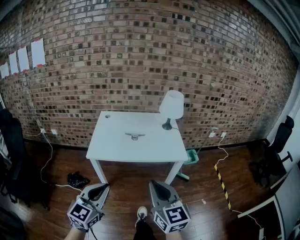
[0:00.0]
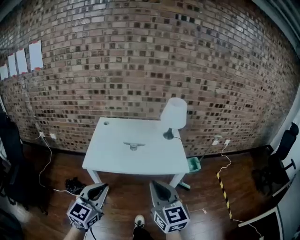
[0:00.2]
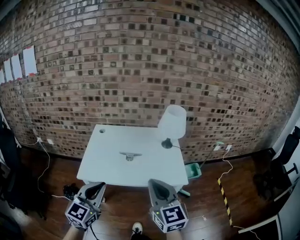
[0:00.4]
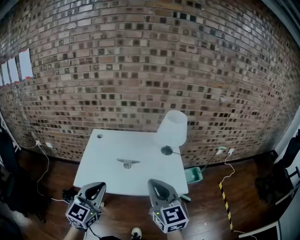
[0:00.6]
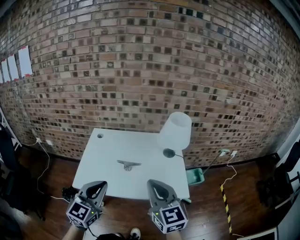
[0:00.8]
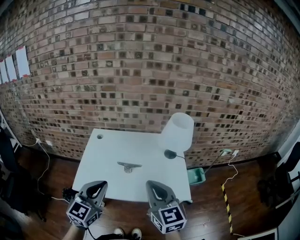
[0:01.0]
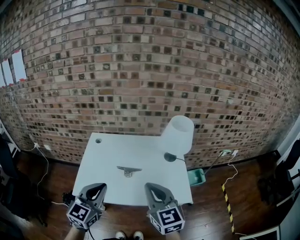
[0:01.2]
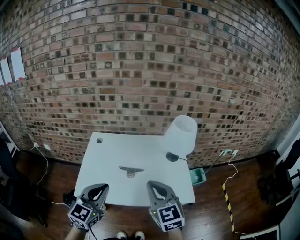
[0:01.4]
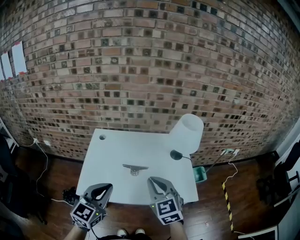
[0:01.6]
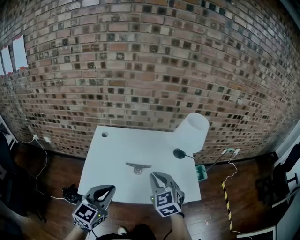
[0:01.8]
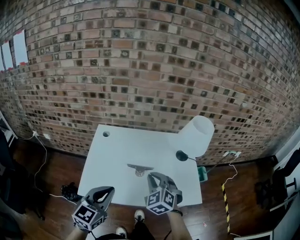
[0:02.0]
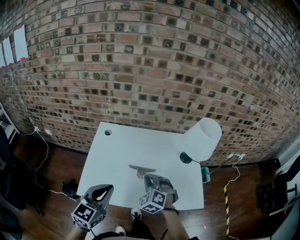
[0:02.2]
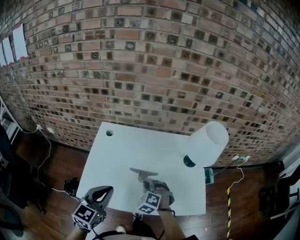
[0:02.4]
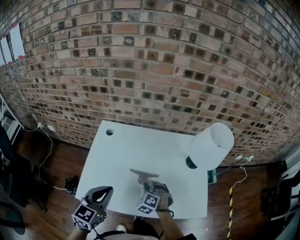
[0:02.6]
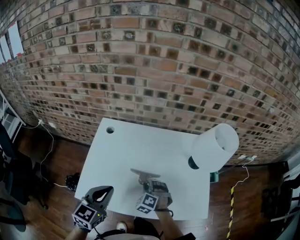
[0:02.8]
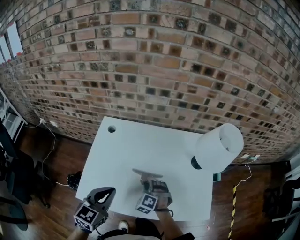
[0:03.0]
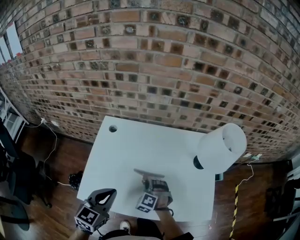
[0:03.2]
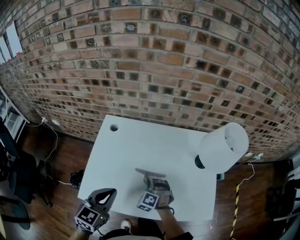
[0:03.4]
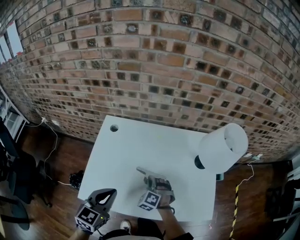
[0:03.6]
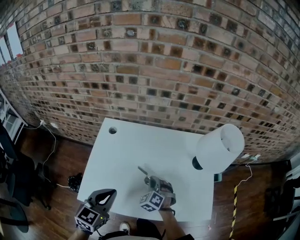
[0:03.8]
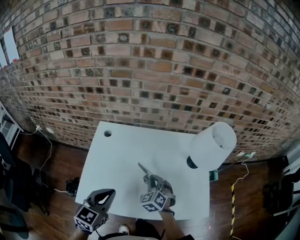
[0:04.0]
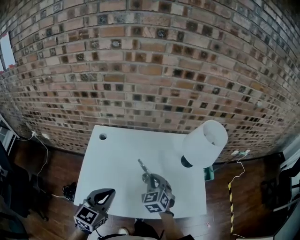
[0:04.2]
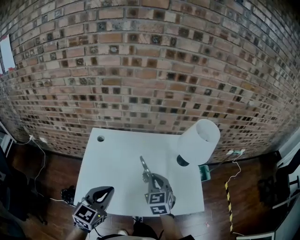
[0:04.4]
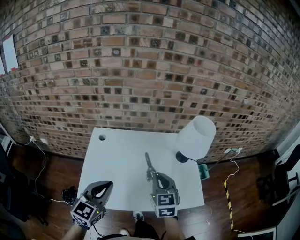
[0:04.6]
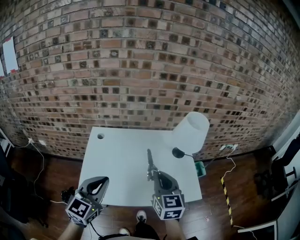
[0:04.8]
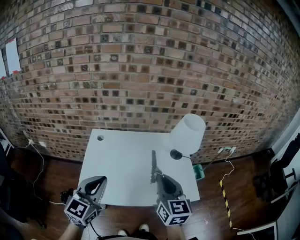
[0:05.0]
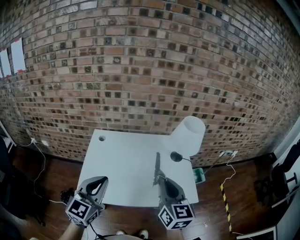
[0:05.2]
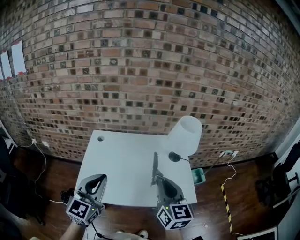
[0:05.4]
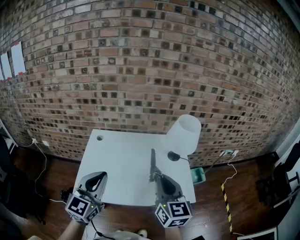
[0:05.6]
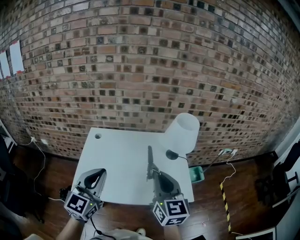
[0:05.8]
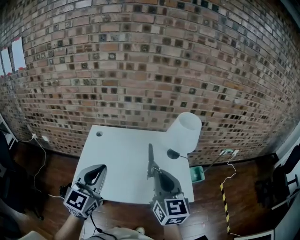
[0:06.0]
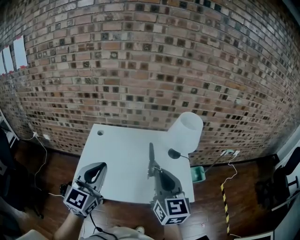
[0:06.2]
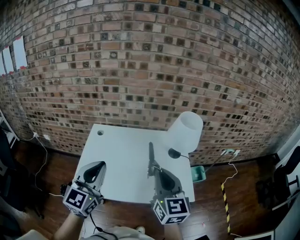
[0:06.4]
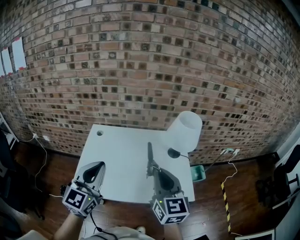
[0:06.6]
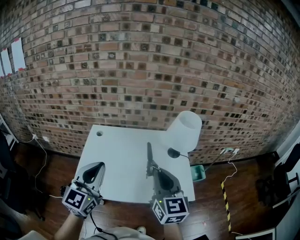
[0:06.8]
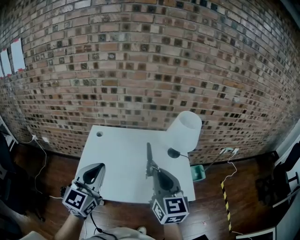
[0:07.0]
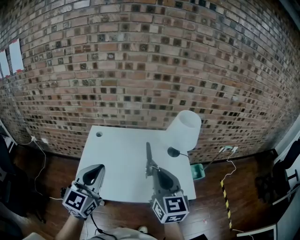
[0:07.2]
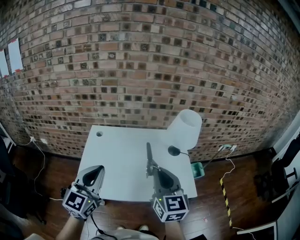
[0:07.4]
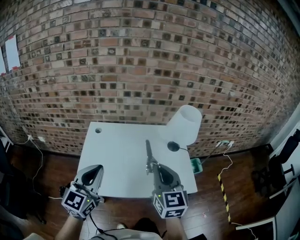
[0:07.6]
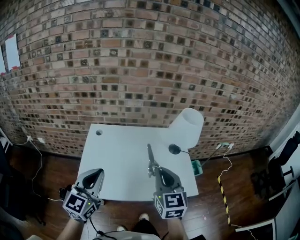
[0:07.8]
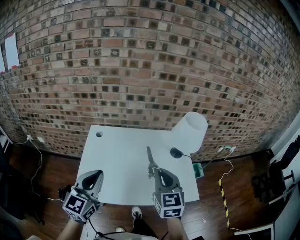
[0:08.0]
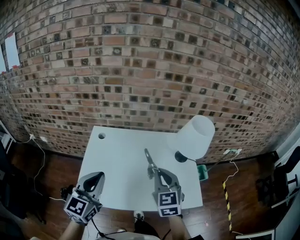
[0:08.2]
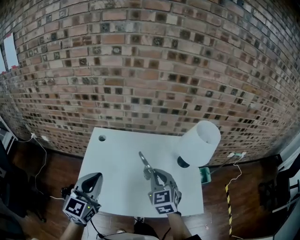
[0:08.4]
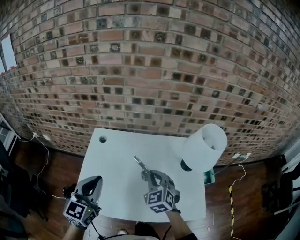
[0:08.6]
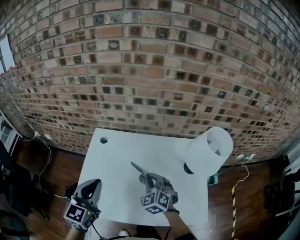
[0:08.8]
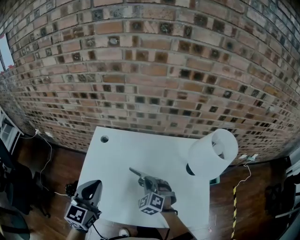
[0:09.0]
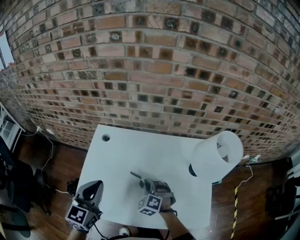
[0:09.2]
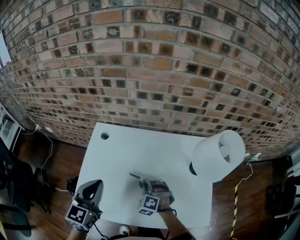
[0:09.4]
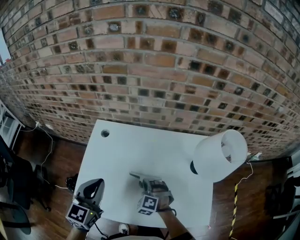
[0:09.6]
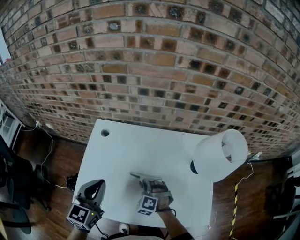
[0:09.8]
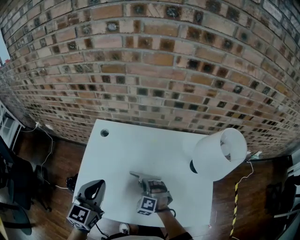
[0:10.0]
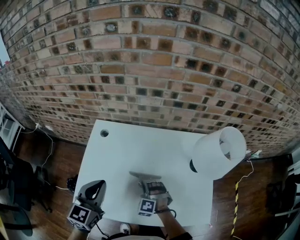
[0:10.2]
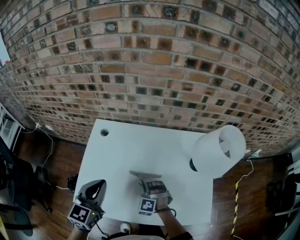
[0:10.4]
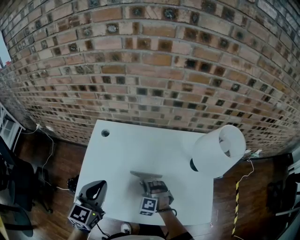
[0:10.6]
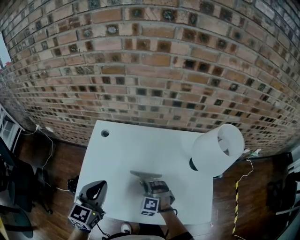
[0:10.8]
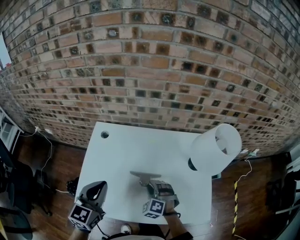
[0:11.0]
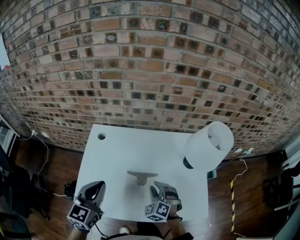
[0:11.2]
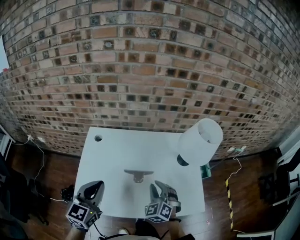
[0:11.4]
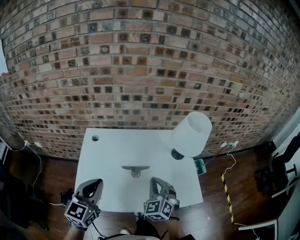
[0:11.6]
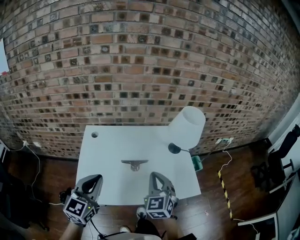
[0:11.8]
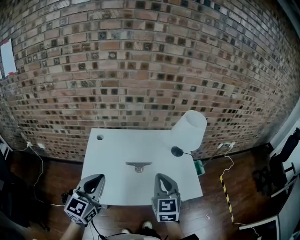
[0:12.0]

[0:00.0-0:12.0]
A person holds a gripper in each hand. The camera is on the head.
0:00.0 to 0:01.6: The grippers both shift forward by some 35 cm. The right gripper turns by roughly 20 degrees.
0:01.6 to 0:03.0: The right gripper shifts approximately 35 cm downward and forward, points its fingers approximately 30 degrees further downward, and opens. Meanwhile the left gripper is displaced forward and downward by approximately 15 cm.
0:03.0 to 0:04.4: The left gripper changes place by approximately 5 cm. The right gripper is displaced upward by roughly 20 cm, rotates around the line of its fingers by roughly 50 degrees, clockwise from behind, and closes its fingers.
0:04.4 to 0:06.0: The right gripper moves upward, backward and to the right, some 25 cm, and turns by about 30 degrees. The left gripper moves upward and backward, approximately 15 cm, and rotates roughly 20 degrees.
0:06.0 to 0:07.6: The left gripper ends up roughly 5 cm from where it was.
0:07.6 to 0:09.0: The left gripper goes roughly 15 cm forward and downward. Meanwhile the right gripper is displaced downward and forward by approximately 35 cm, and points its fingers approximately 30 degrees further downward.
0:09.0 to 0:10.4: The right gripper travels downward by roughly 10 cm, and rotates approximately 30 degrees.
0:10.4 to 0:12.0: The left gripper is displaced backward and upward by roughly 15 cm, and swivels approximately 20 degrees. The right gripper moves upward and backward, about 35 cm, and rotates around the line of its fingers by about 70 degrees, clockwise from behind.

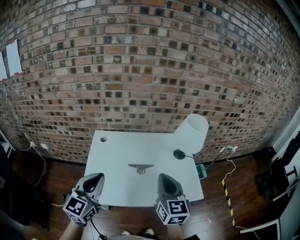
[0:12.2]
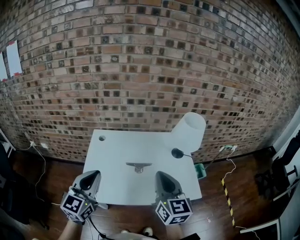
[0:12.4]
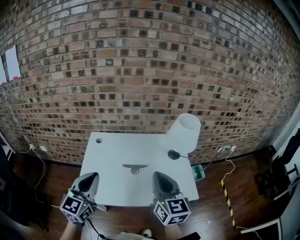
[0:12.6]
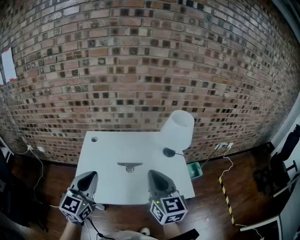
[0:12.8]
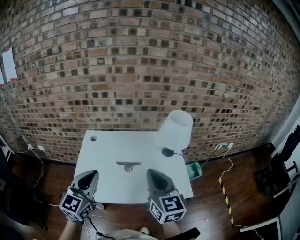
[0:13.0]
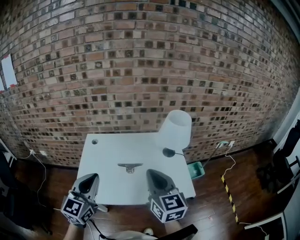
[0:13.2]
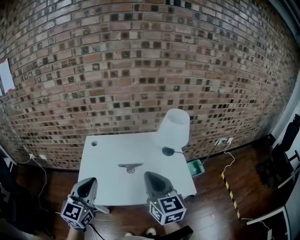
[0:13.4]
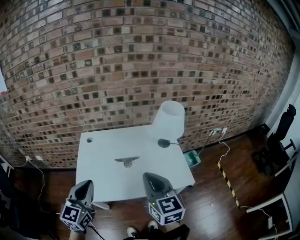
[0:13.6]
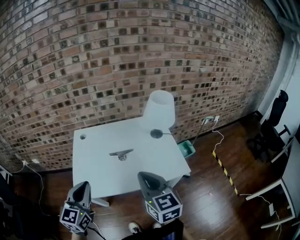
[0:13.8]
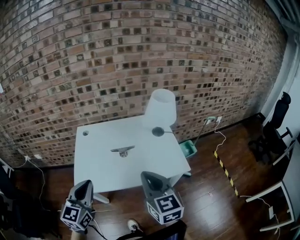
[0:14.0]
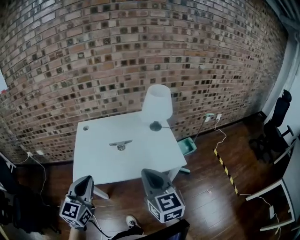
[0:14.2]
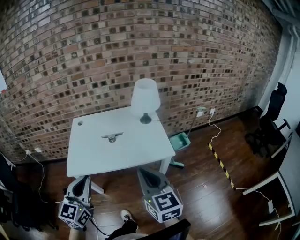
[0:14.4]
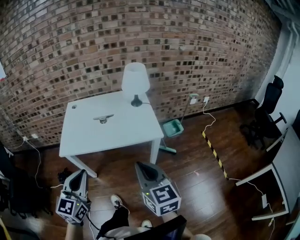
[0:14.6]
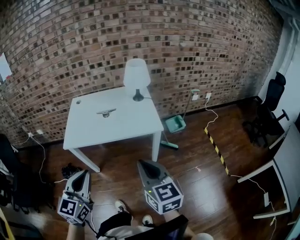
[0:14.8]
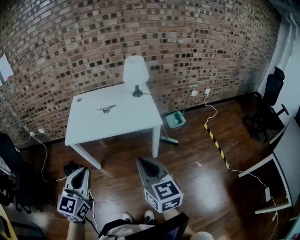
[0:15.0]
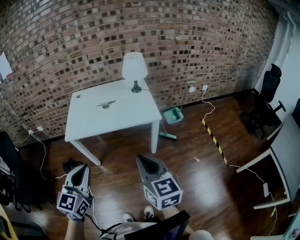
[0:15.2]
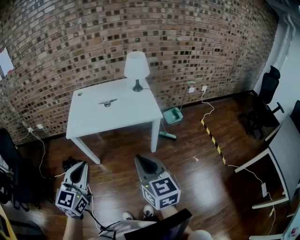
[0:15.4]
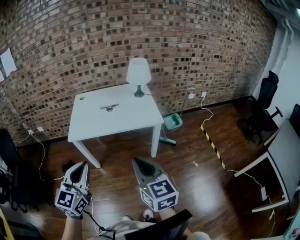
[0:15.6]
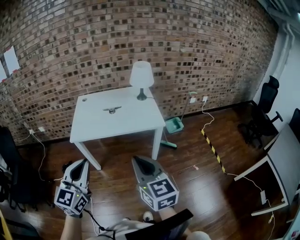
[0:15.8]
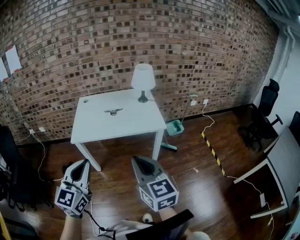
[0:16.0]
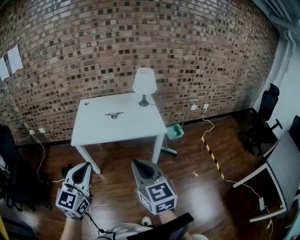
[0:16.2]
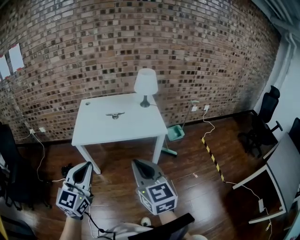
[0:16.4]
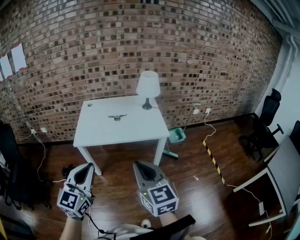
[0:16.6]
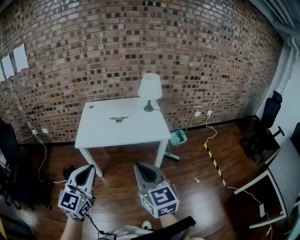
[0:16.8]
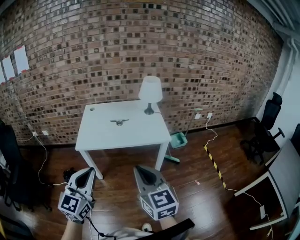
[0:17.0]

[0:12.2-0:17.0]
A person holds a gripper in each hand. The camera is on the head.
0:12.2 to 0:13.8: The two grippers go approximately 10 cm backward.
0:13.8 to 0:15.4: Both grippers travel together backward, approximately 35 cm.
0:15.4 to 0:17.0: The right gripper is displaced to the left and upward by roughly 10 cm, while the left gripper changes place by some 5 cm.

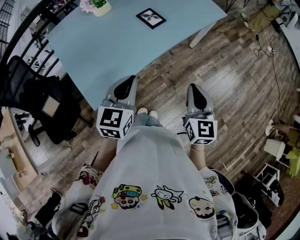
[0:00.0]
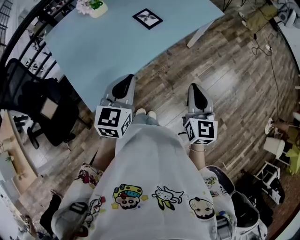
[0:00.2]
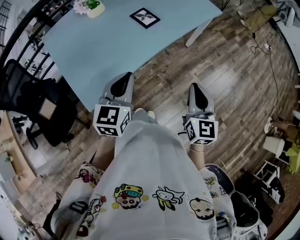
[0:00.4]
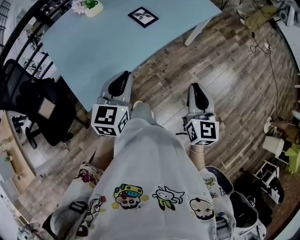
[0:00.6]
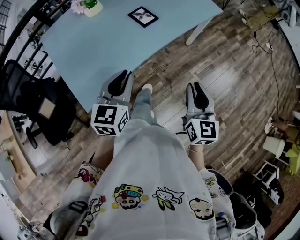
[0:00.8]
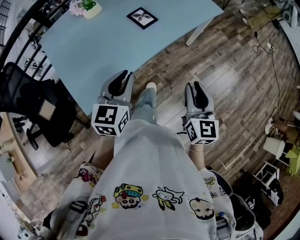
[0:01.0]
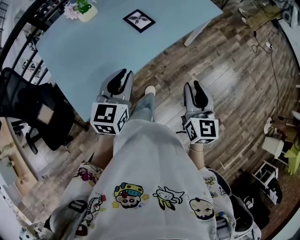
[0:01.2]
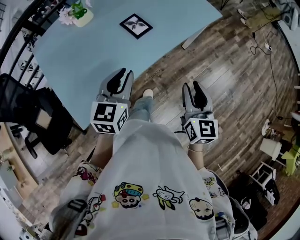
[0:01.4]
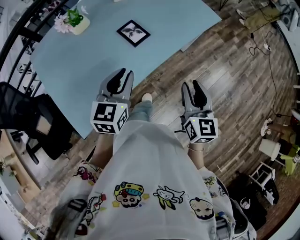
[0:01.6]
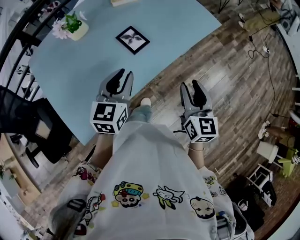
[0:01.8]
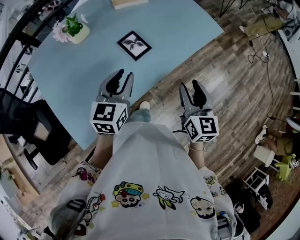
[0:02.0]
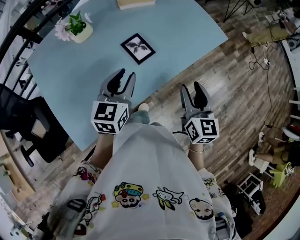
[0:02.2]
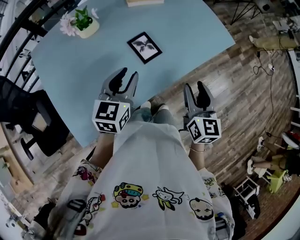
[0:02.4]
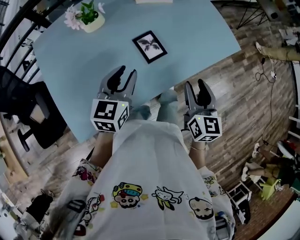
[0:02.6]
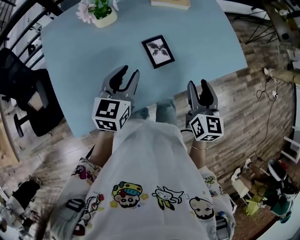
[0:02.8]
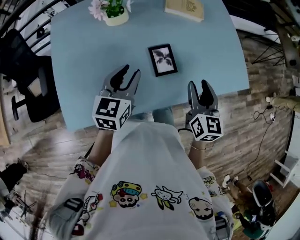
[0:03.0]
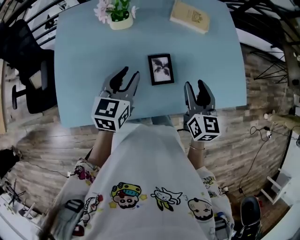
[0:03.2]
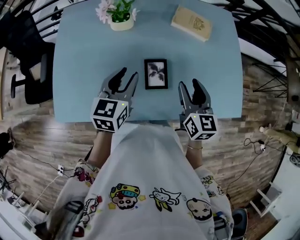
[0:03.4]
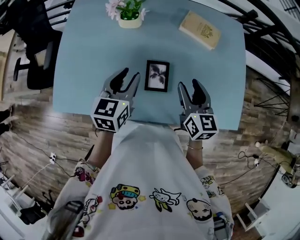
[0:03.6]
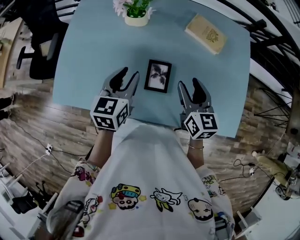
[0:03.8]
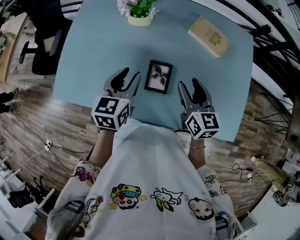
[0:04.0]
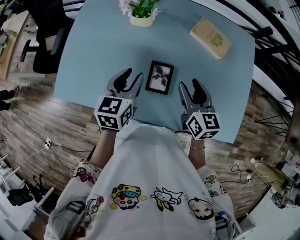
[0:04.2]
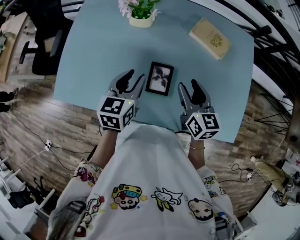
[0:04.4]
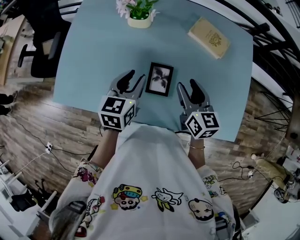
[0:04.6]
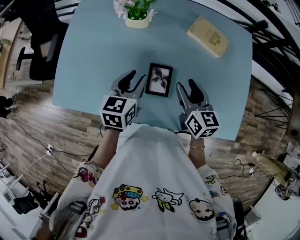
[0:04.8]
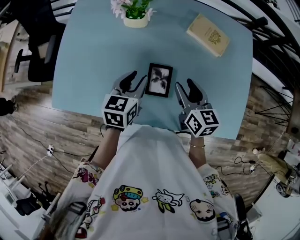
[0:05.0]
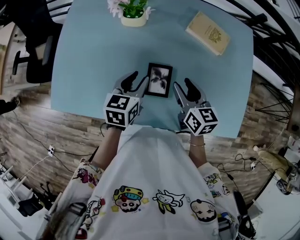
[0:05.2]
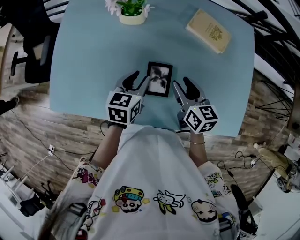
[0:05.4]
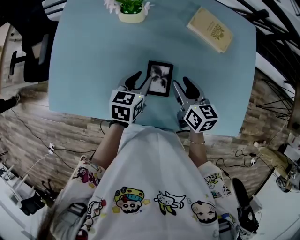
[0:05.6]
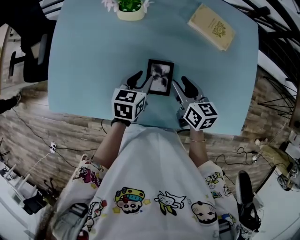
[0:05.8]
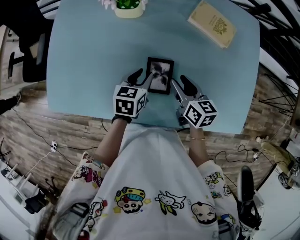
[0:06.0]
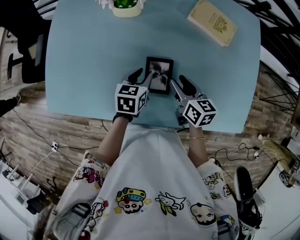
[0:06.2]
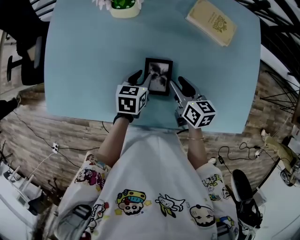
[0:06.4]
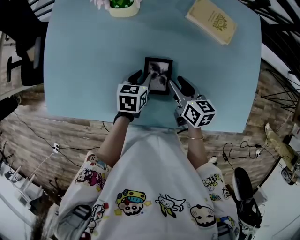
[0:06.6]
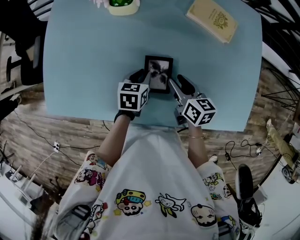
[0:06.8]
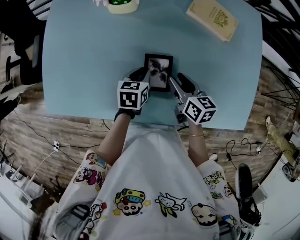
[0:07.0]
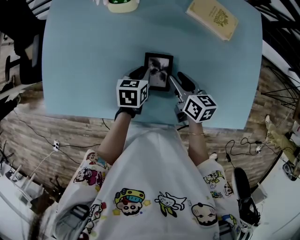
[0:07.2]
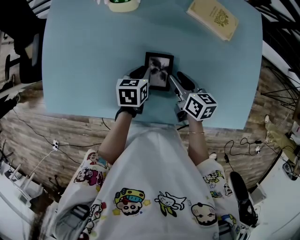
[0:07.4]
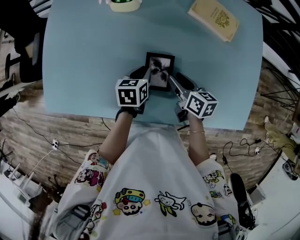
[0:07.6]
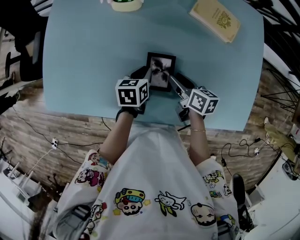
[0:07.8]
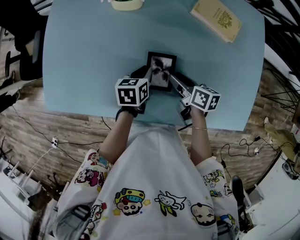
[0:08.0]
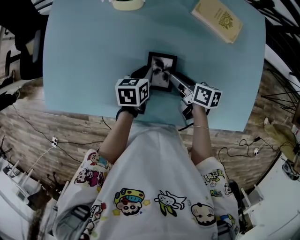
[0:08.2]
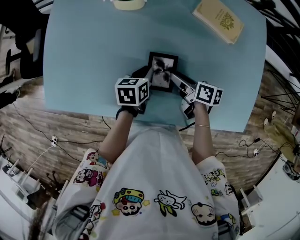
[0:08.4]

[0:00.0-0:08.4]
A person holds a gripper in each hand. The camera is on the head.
0:00.0 to 0:01.4: The grippers both shift forward by roughly 10 cm. The right gripper opens up.
0:01.4 to 0:02.8: Both grippers move forward, about 20 cm.
0:02.8 to 0:04.2: The right gripper moves some 20 cm, and swivels approximately 40 degrees, while the left gripper ends up some 10 cm from where it was, and swivels some 40 degrees.
0:04.2 to 0:05.6: The two grippers go about 10 cm downward.
0:05.6 to 0:07.0: The grippers both shift downward by roughly 10 cm.
0:07.0 to 0:08.4: The right gripper swivels some 30 degrees.
